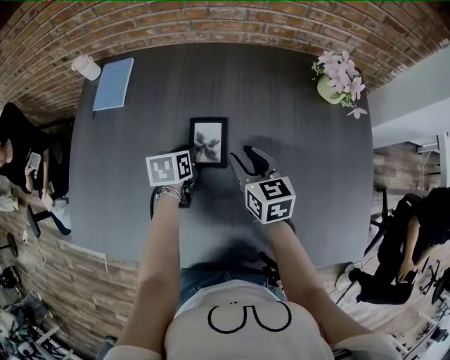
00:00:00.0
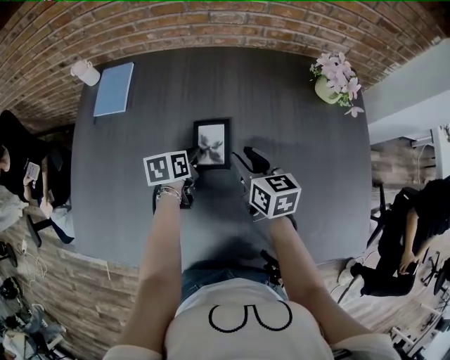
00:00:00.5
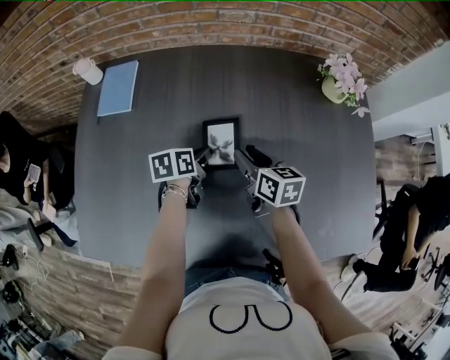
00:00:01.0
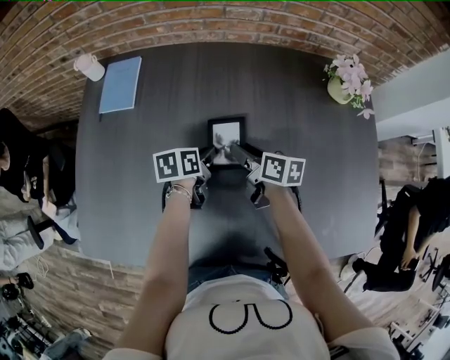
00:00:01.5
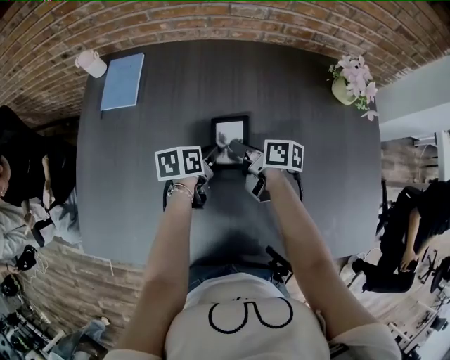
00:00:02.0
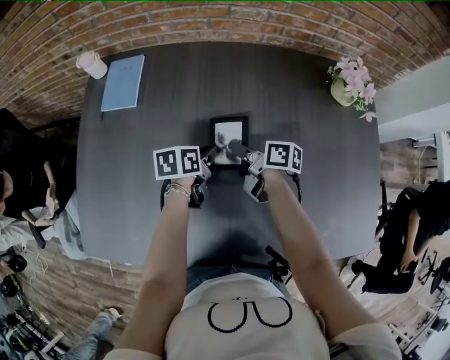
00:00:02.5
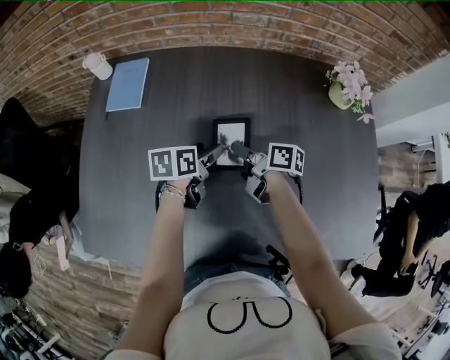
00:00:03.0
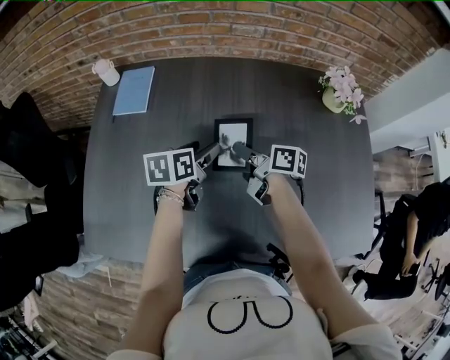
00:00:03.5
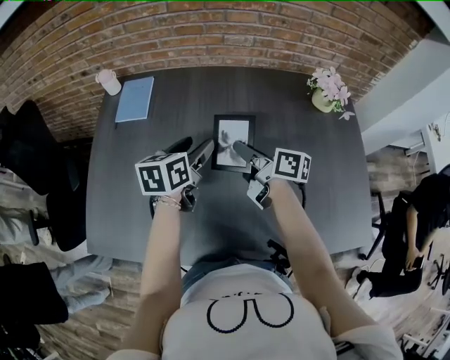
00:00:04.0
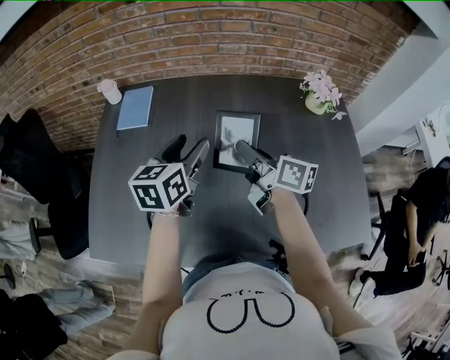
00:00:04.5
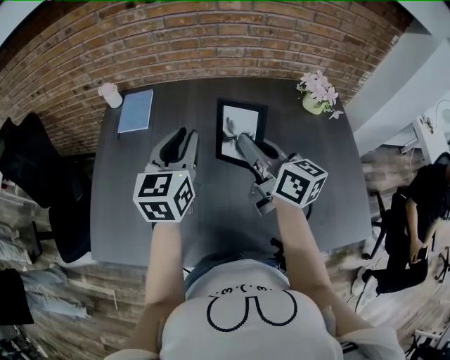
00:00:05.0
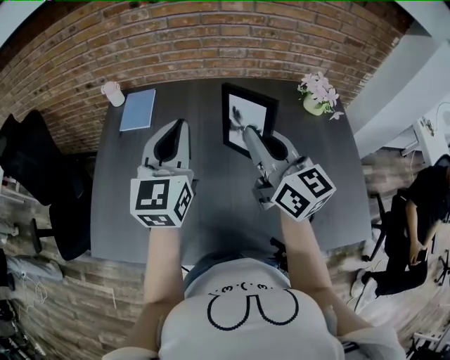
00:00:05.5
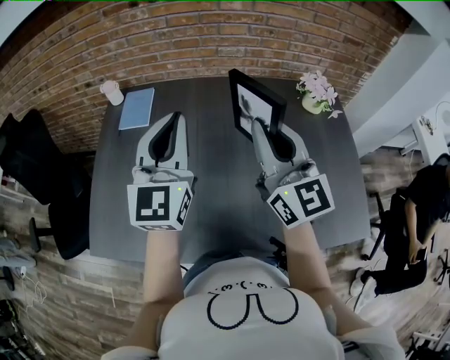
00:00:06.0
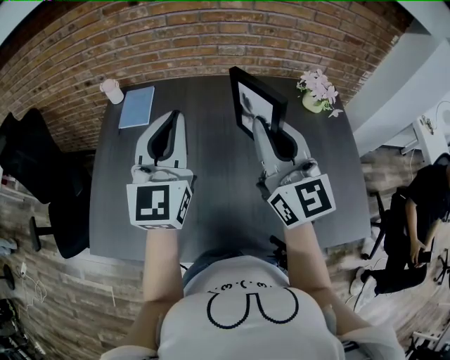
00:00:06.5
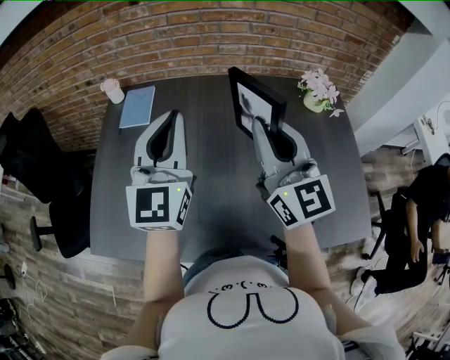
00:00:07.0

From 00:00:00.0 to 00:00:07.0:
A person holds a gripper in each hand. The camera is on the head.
From 00:00:00.0 to 00:00:02.0: The left gripper turns by about 20 degrees, while the right gripper moves to the left and downward, approximately 10 cm, rolls clockwise, seen from behind, by approximately 50 degrees, and closes up.
From 00:00:02.0 to 00:00:03.5: The left gripper is displaced upward by approximately 10 cm, and opens its fingers; the right gripper is displaced upward by roughly 5 cm.
From 00:00:03.5 to 00:00:05.0: The two grippers go about 20 cm upward. The right gripper rotates approximately 40 degrees. Meanwhile the left gripper swivels about 40 degrees, and closes up.
From 00:00:05.0 to 00:00:07.0: The two grippers go some 10 cm upward. The right gripper changes its angle by some 40 degrees, while the left gripper swivels some 30 degrees.

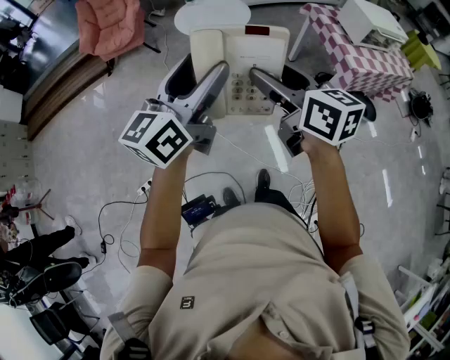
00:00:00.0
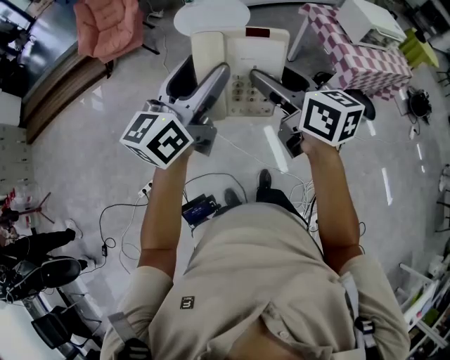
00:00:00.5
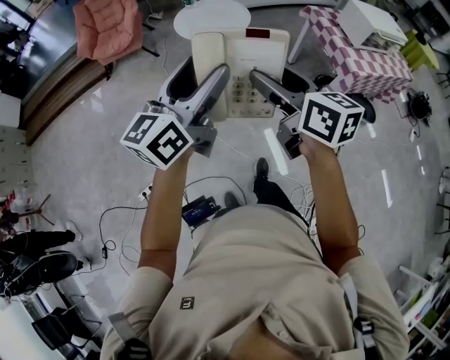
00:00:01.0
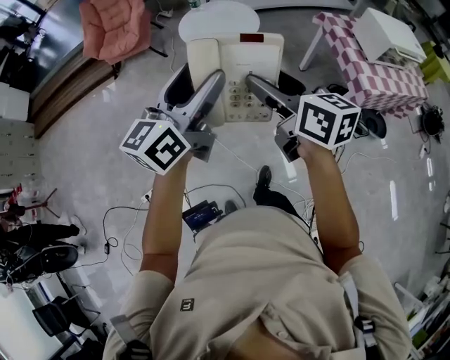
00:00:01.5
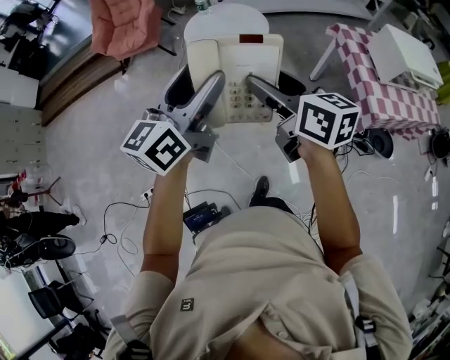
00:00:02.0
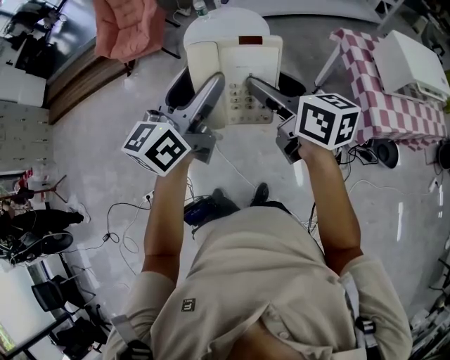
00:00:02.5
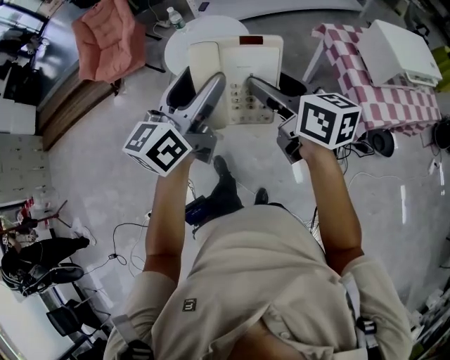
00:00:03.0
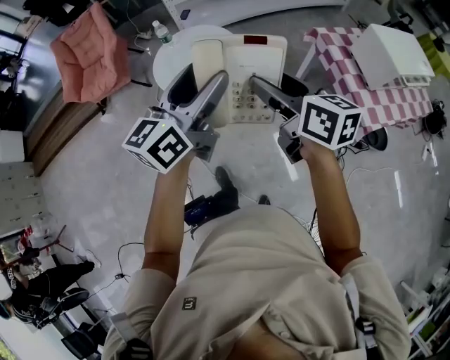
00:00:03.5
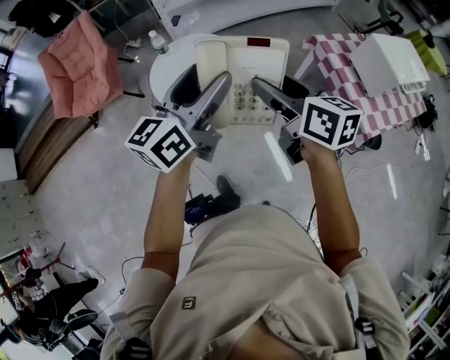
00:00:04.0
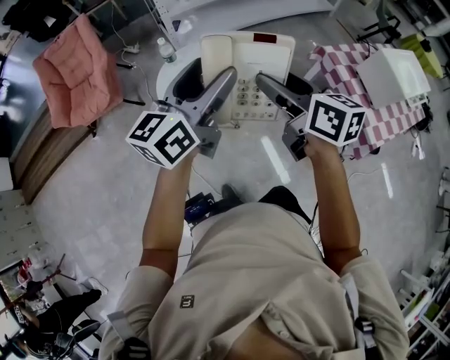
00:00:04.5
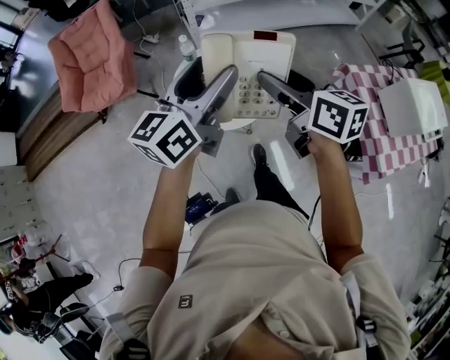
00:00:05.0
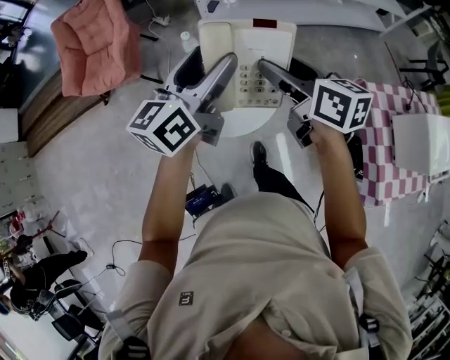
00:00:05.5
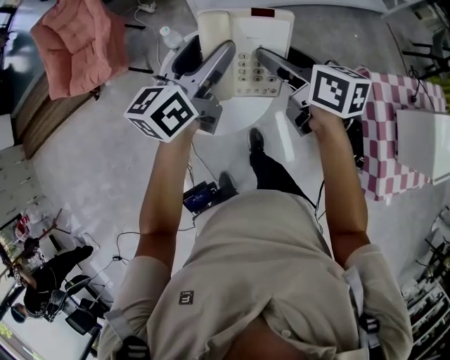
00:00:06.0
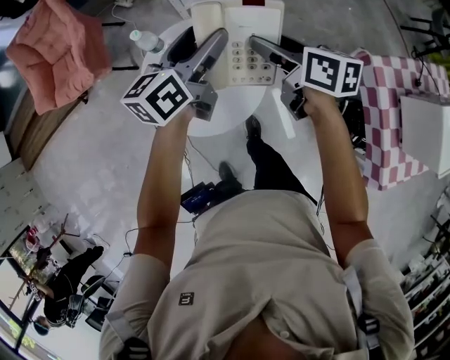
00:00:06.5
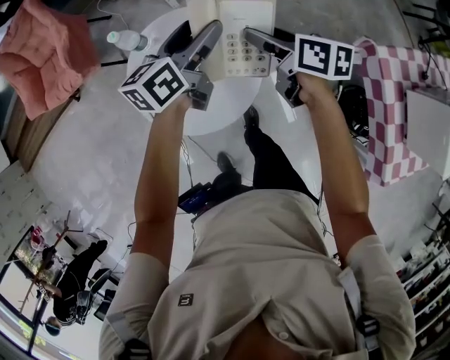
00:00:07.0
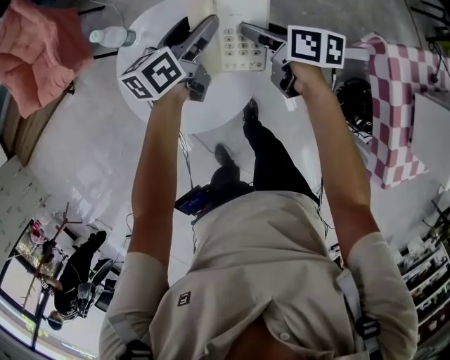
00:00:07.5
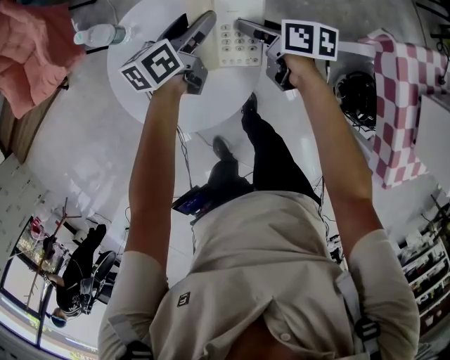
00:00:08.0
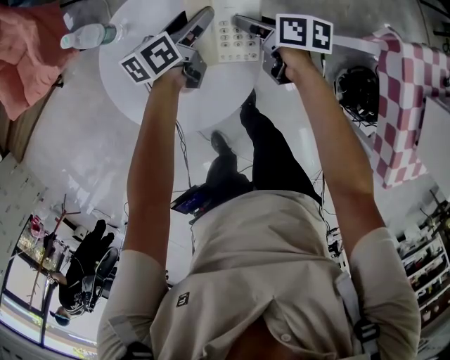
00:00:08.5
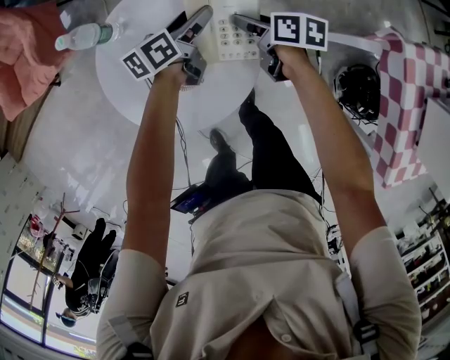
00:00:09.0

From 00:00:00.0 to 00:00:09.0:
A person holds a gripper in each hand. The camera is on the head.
From 00:00:00.0 to 00:00:02.0: Both grippers move forward, about 20 cm.
From 00:00:02.0 to 00:00:04.5: The two grippers go some 35 cm forward.
From 00:00:04.5 to 00:00:07.0: The grippers both shift downward and to the right by about 20 cm. The right gripper rotates about 20 degrees. Meanwhile the left gripper rotates roughly 20 degrees.
From 00:00:07.0 to 00:00:09.0: Both grippers move downward, about 20 cm. The left gripper changes its angle by roughly 20 degrees.

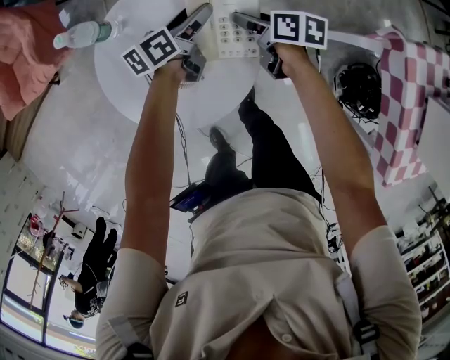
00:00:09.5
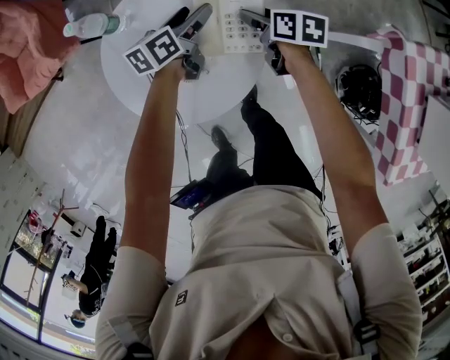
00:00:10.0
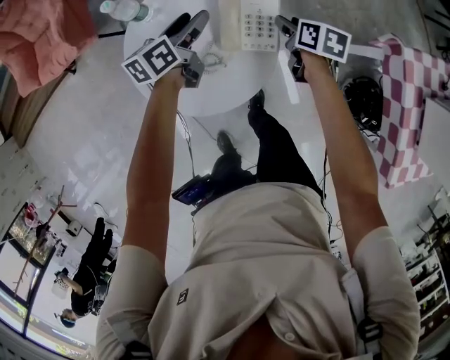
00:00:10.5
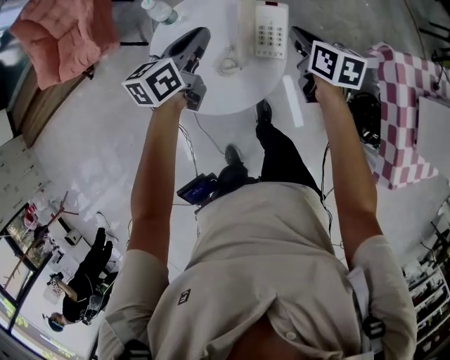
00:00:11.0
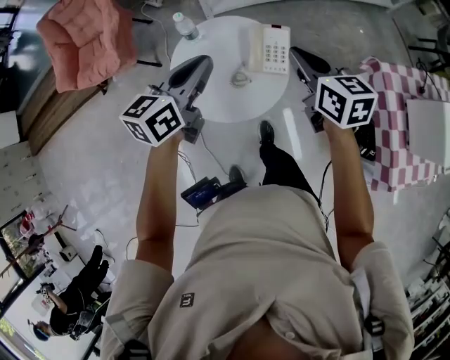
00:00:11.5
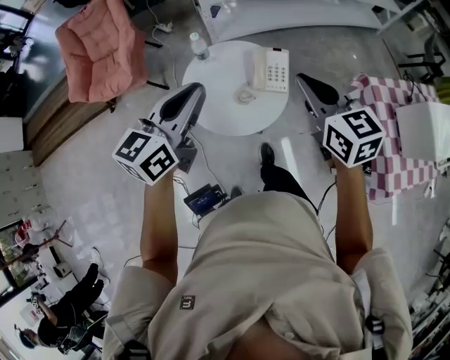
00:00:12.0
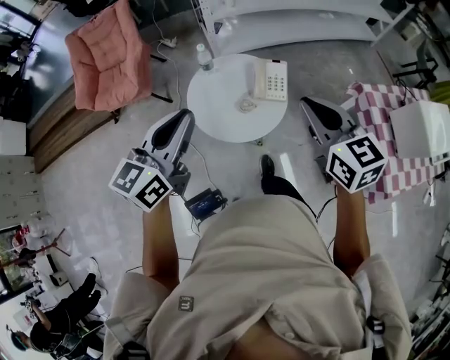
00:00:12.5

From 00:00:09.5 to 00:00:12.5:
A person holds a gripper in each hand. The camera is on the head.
From 00:00:09.5 to 00:00:11.0: The left gripper goes approximately 25 cm upward, backward and to the left, swivels roughly 20 degrees, and closes. Meanwhile the right gripper goes about 20 cm upward, swivels about 30 degrees, and closes up.
From 00:00:11.0 to 00:00:12.5: The left gripper travels backward and upward by about 30 cm, and turns by about 20 degrees. The right gripper moves upward and backward, roughly 35 cm, and swivels about 30 degrees.

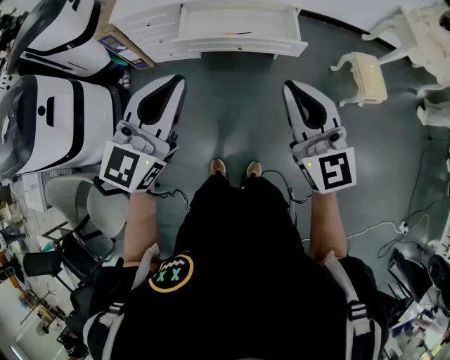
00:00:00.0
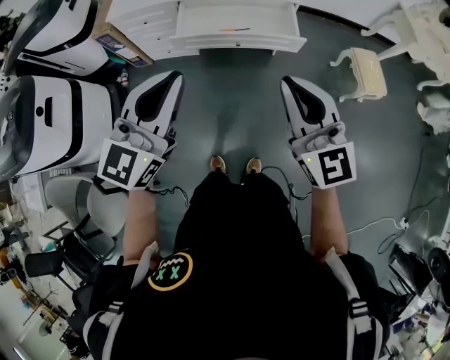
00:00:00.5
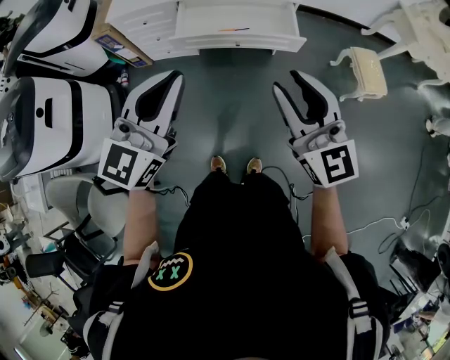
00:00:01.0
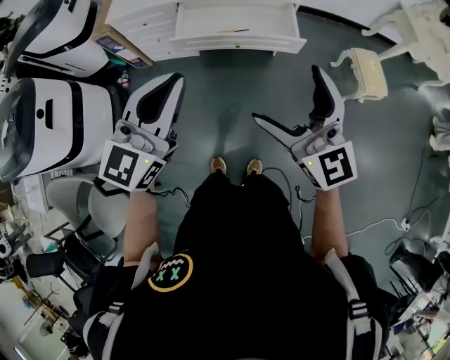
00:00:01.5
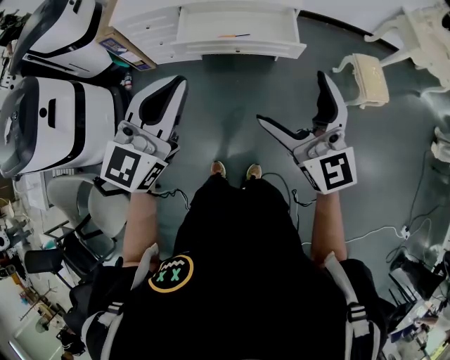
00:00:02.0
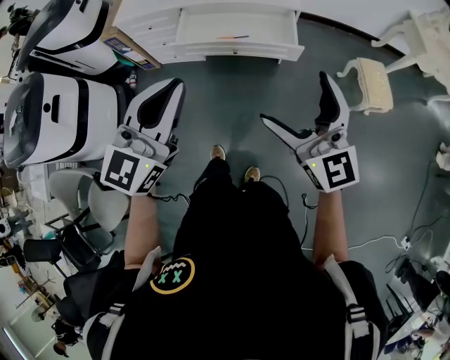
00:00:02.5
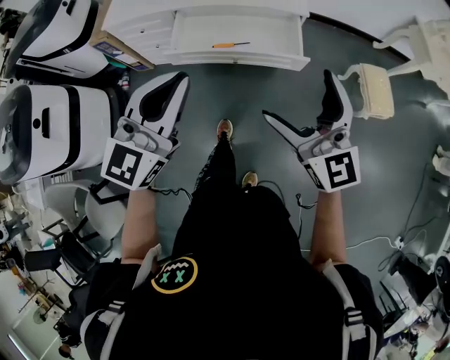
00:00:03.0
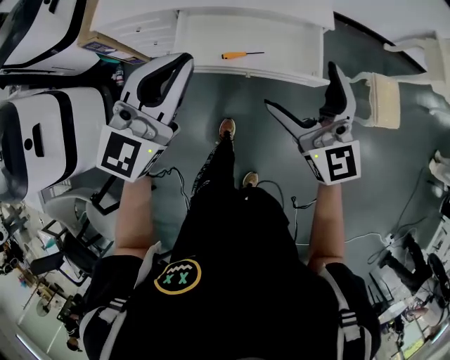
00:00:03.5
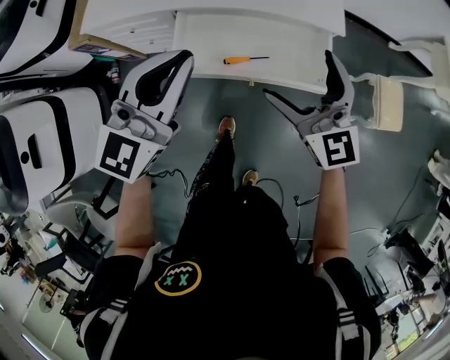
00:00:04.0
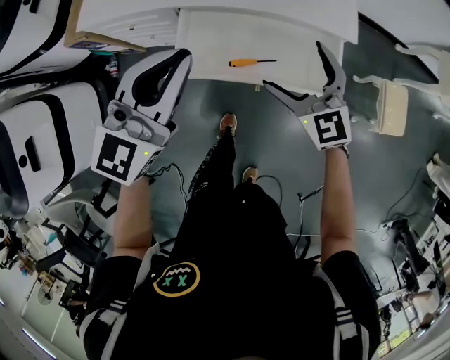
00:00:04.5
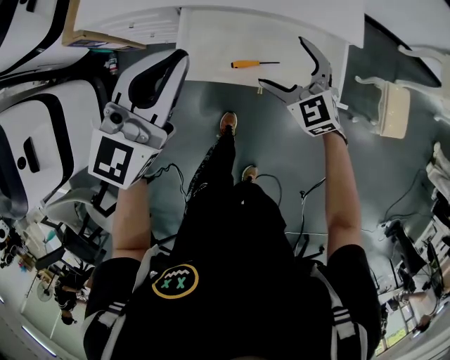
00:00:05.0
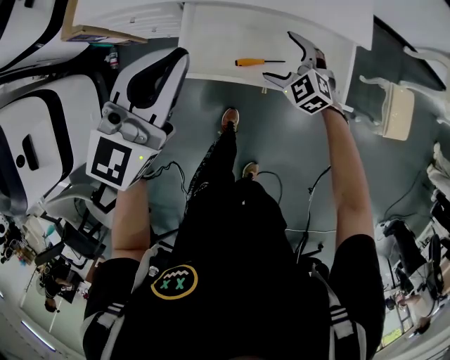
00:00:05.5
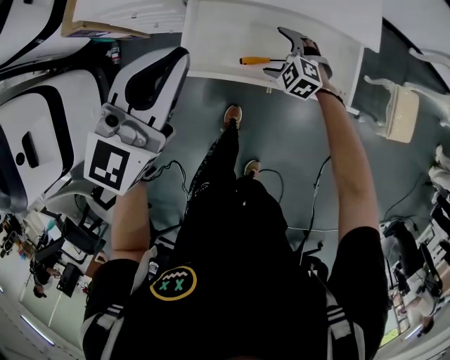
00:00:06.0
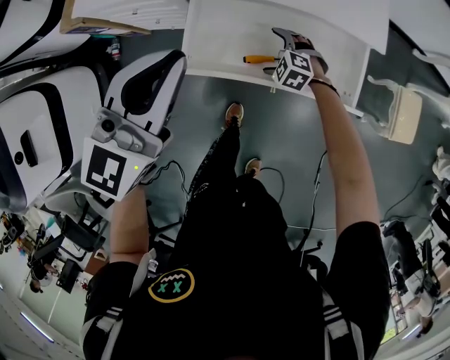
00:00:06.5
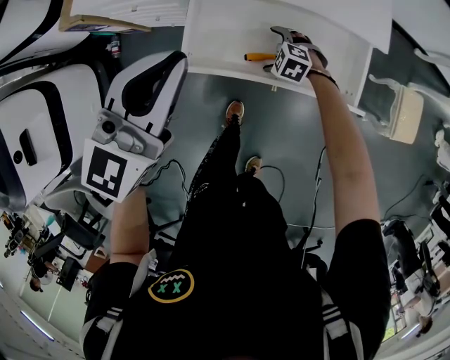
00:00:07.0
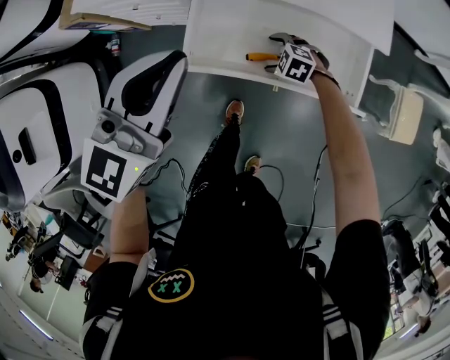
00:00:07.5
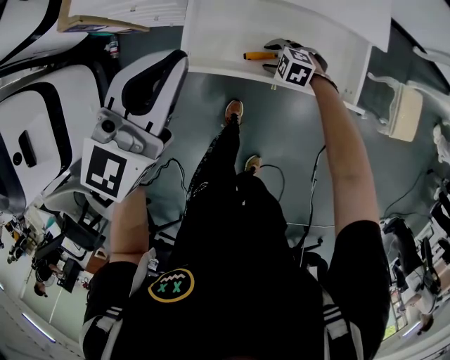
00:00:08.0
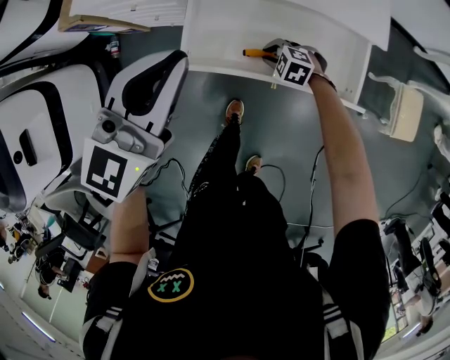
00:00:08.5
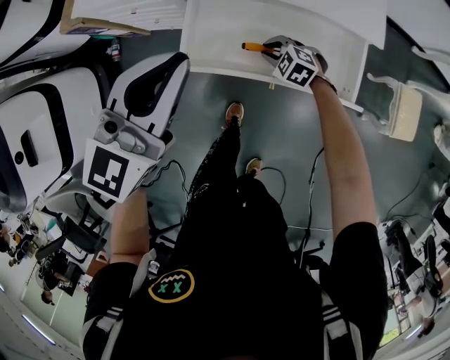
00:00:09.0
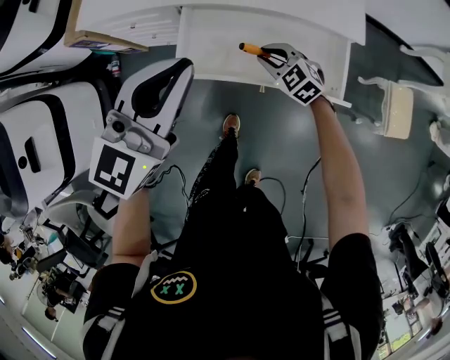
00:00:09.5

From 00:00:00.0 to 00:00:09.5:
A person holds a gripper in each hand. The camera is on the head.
From 00:00:00.0 to 00:00:02.0: The right gripper opens its fingers.
From 00:00:02.0 to 00:00:04.0: Both grippers move forward, some 35 cm.
From 00:00:04.0 to 00:00:05.5: The left gripper is displaced forward by some 5 cm, while the right gripper moves downward, approximately 25 cm, and tips its fingers downward by some 40 degrees.
From 00:00:05.5 to 00:00:07.5: The right gripper is displaced downward by some 15 cm, and swivels approximately 30 degrees.
From 00:00:07.5 to 00:00:09.5: The right gripper shifts approximately 15 cm upward, turns by some 30 degrees, and closes. The left gripper changes place by some 5 cm.
